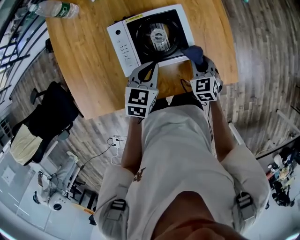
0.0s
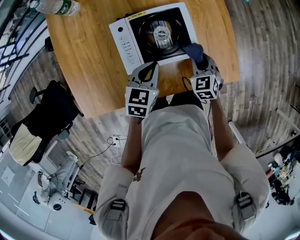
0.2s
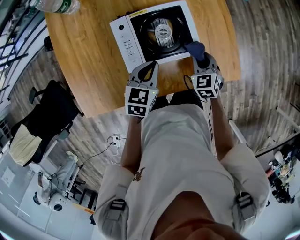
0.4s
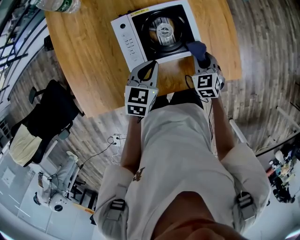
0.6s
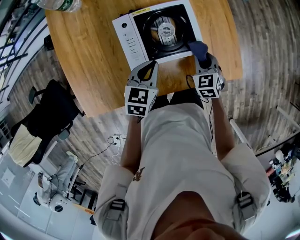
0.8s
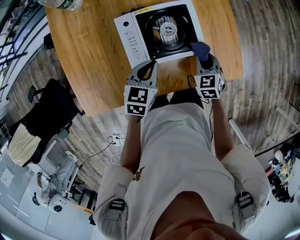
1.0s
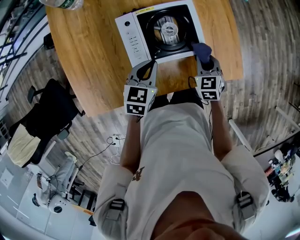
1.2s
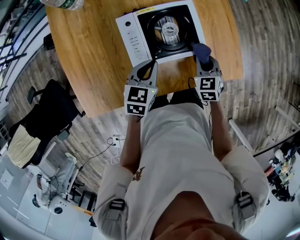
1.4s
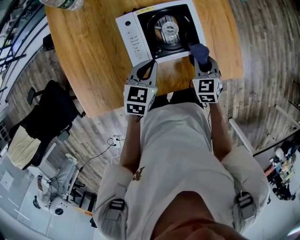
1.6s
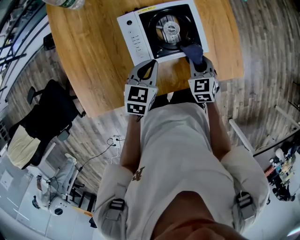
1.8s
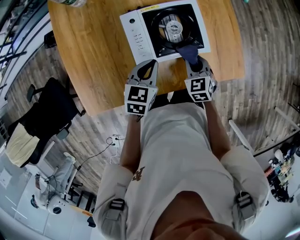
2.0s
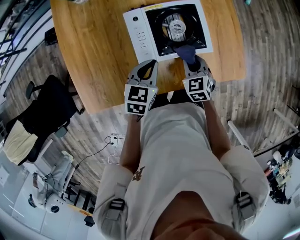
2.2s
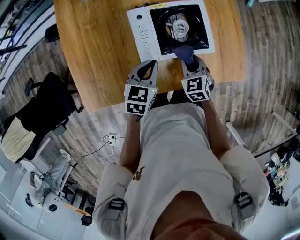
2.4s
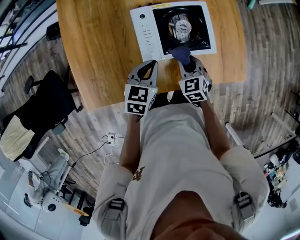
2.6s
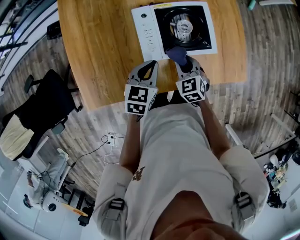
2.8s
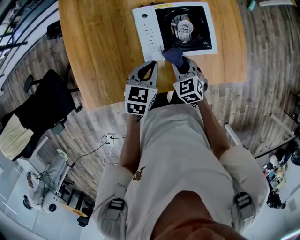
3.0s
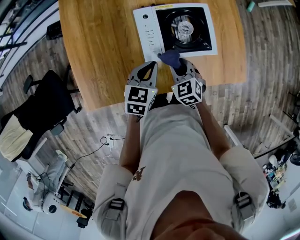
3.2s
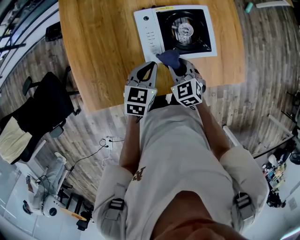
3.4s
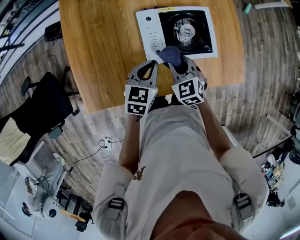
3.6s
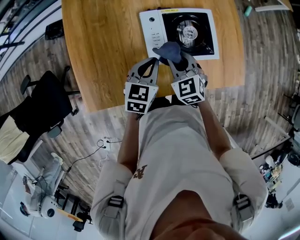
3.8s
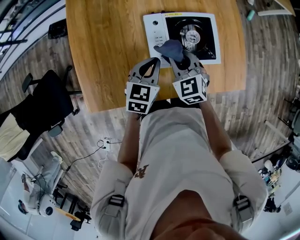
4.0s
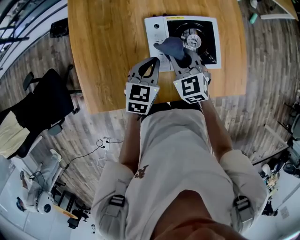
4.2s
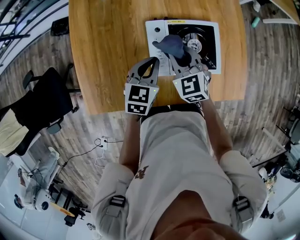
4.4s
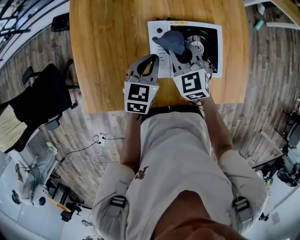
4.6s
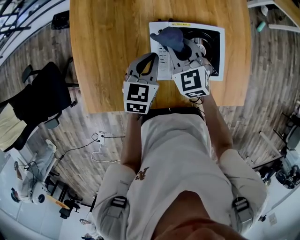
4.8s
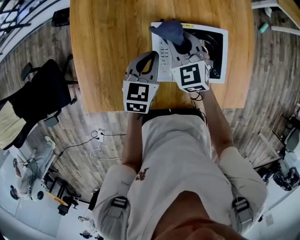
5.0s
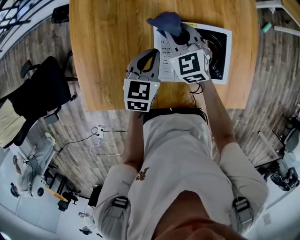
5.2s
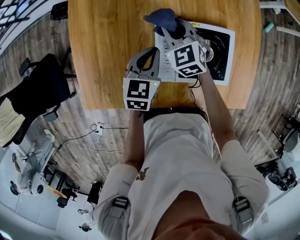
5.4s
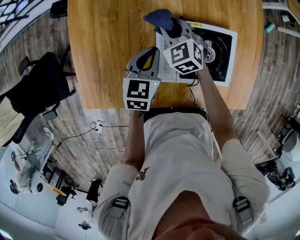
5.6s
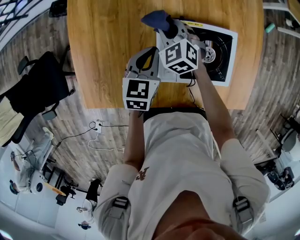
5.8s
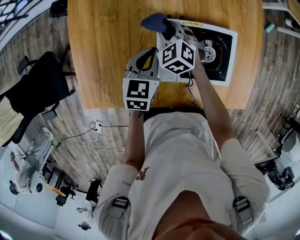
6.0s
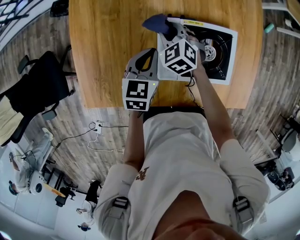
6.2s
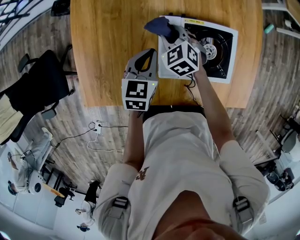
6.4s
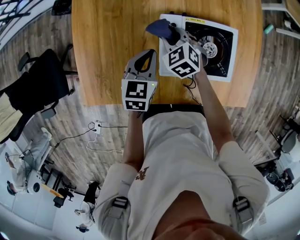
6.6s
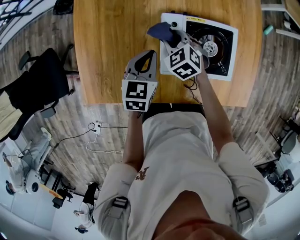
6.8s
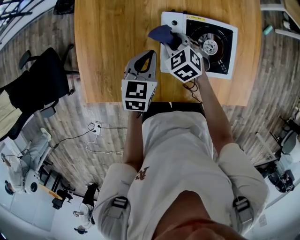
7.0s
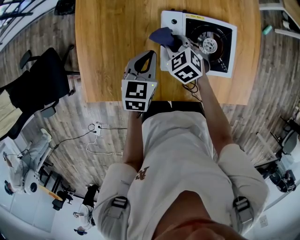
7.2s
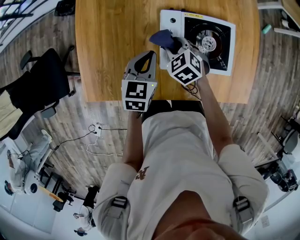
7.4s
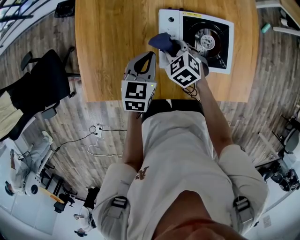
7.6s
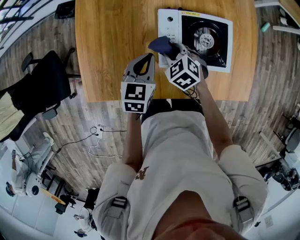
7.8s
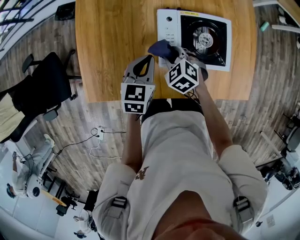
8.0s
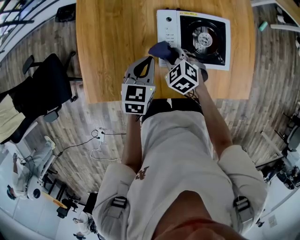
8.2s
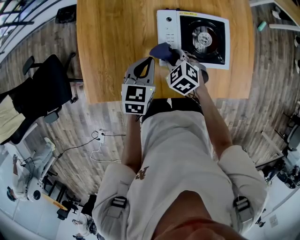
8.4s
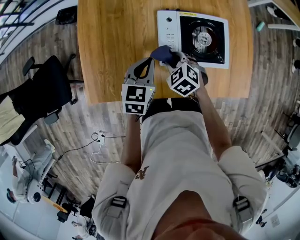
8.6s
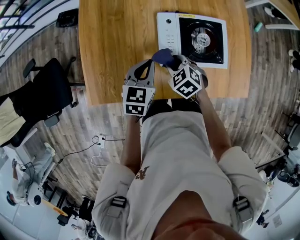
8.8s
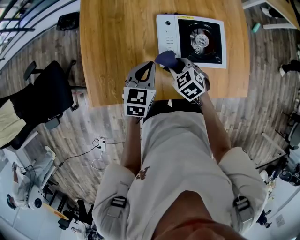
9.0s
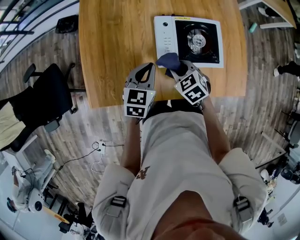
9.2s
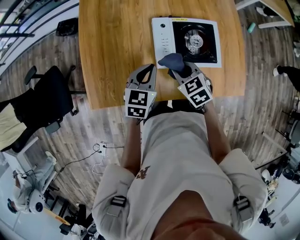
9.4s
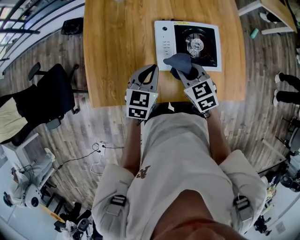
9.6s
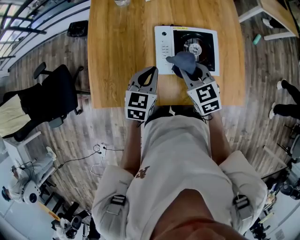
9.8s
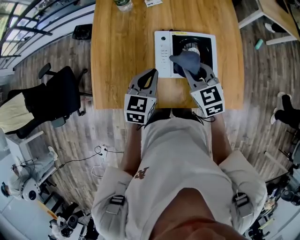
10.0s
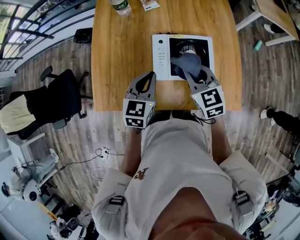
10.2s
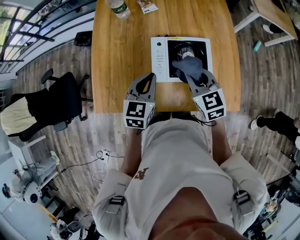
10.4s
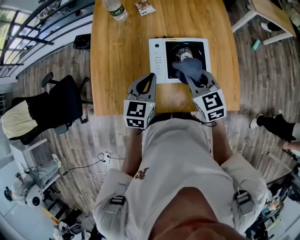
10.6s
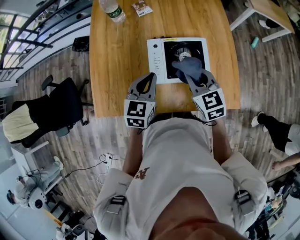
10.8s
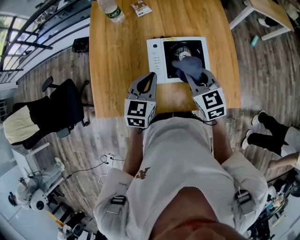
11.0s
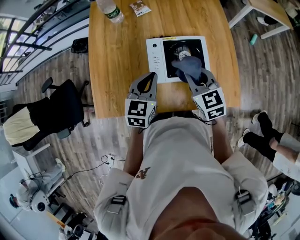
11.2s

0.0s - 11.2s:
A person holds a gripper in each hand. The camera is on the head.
0.0s - 1.6s: The left gripper is displaced to the left by some 5 cm.
1.6s - 3.2s: The right gripper travels to the left by about 15 cm, and turns by some 20 degrees. The left gripper is displaced to the left by approximately 5 cm.
3.2s - 4.8s: The left gripper is displaced forward by some 10 cm, while the right gripper heads forward and upward, covering roughly 20 cm.
4.8s - 6.4s: The left gripper shifts by roughly 5 cm, while the right gripper heads downward and to the left, covering approximately 10 cm.
6.4s - 8.0s: The right gripper heads backward, covering about 15 cm, while the left gripper goes some 5 cm backward.
8.0s - 9.6s: The left gripper ends up approximately 5 cm from where it was. The right gripper travels upward and to the right by approximately 10 cm, and swivels about 20 degrees.
9.6s - 11.2s: Both grippers travel together upward and to the right, roughly 10 cm.

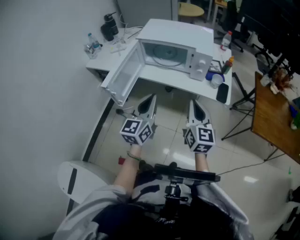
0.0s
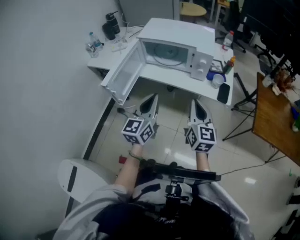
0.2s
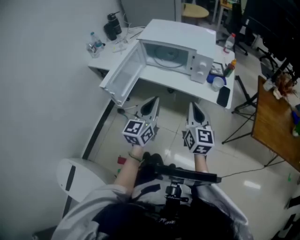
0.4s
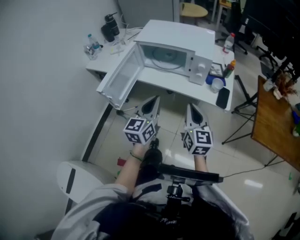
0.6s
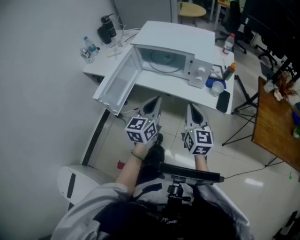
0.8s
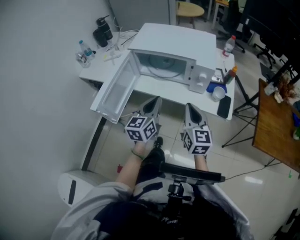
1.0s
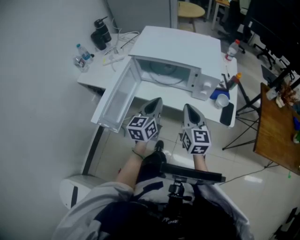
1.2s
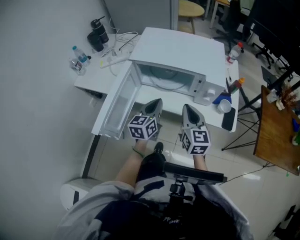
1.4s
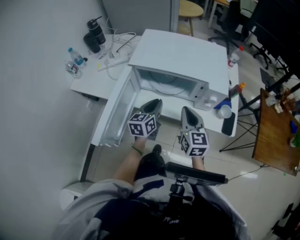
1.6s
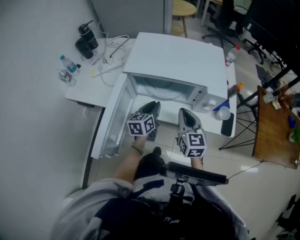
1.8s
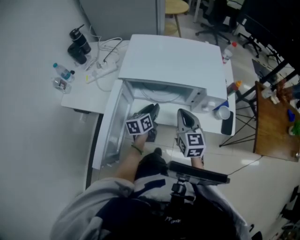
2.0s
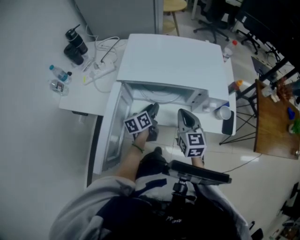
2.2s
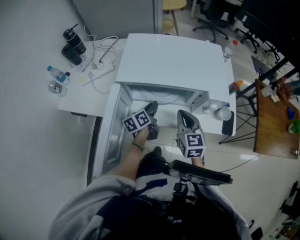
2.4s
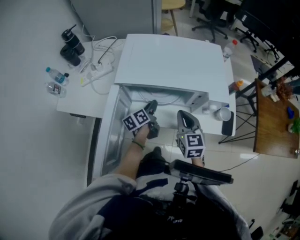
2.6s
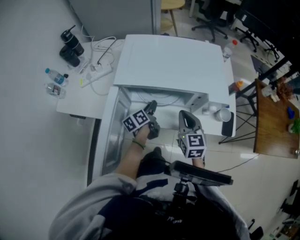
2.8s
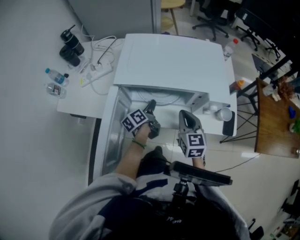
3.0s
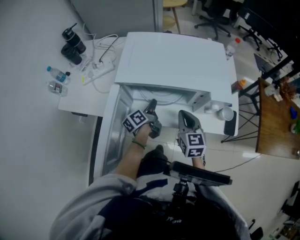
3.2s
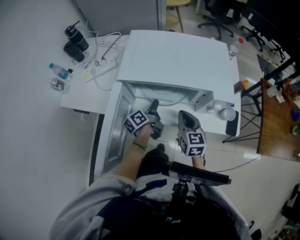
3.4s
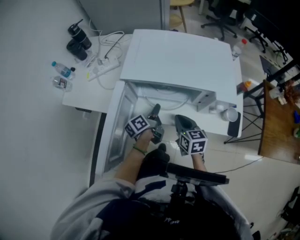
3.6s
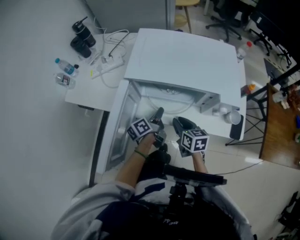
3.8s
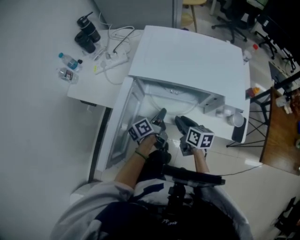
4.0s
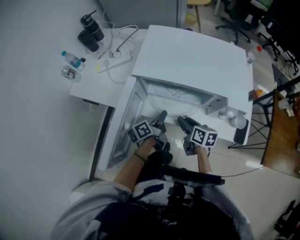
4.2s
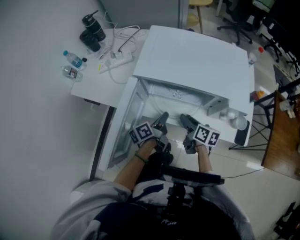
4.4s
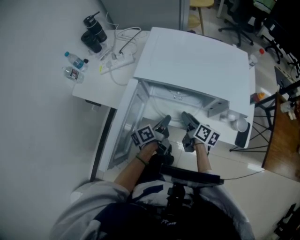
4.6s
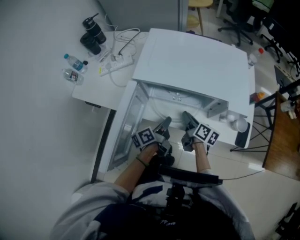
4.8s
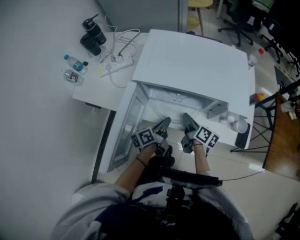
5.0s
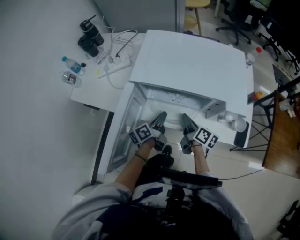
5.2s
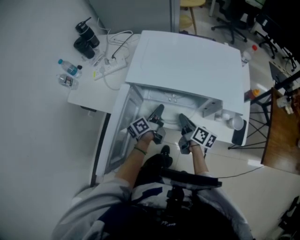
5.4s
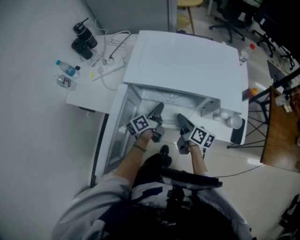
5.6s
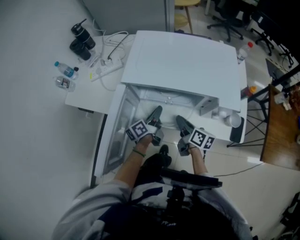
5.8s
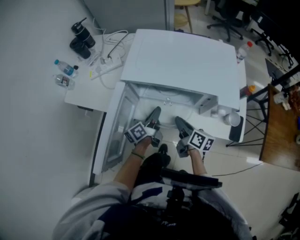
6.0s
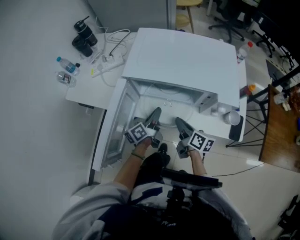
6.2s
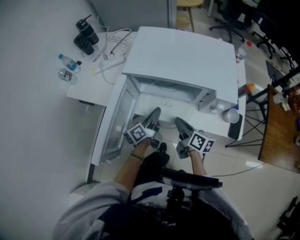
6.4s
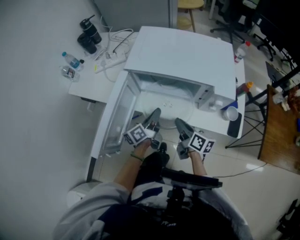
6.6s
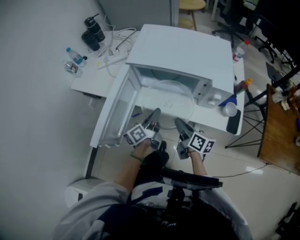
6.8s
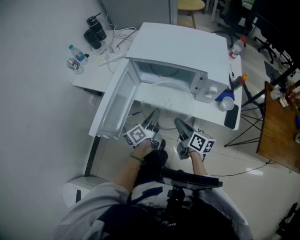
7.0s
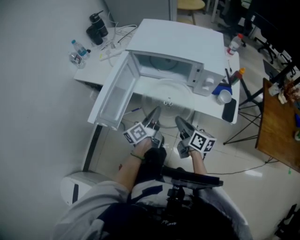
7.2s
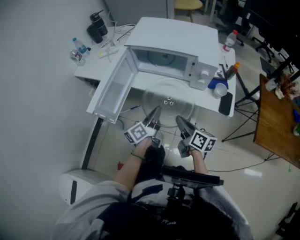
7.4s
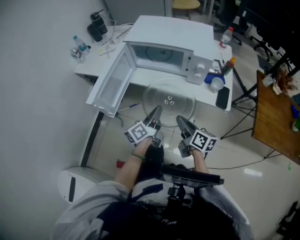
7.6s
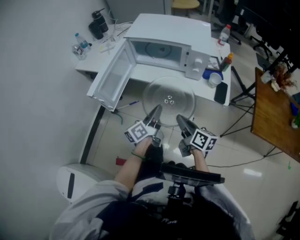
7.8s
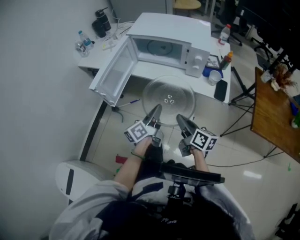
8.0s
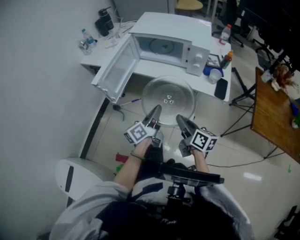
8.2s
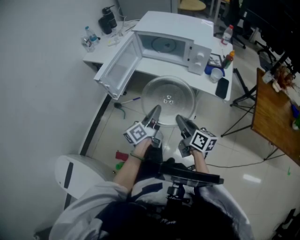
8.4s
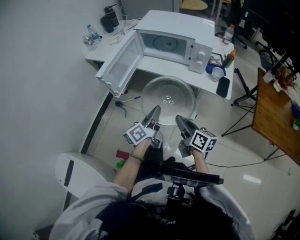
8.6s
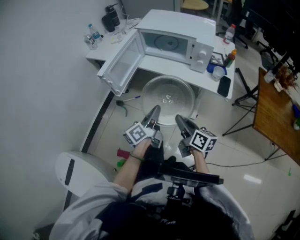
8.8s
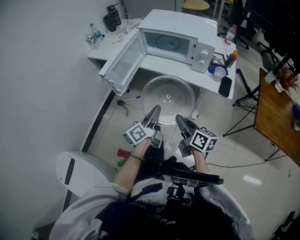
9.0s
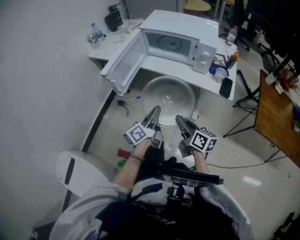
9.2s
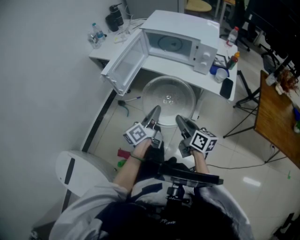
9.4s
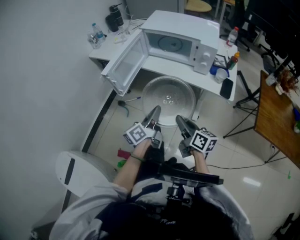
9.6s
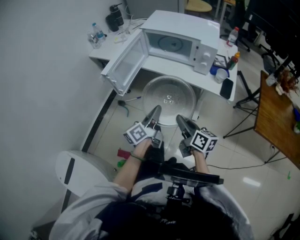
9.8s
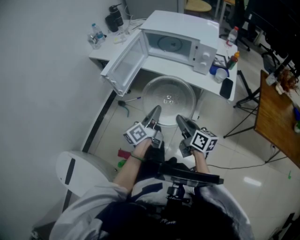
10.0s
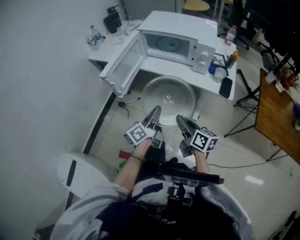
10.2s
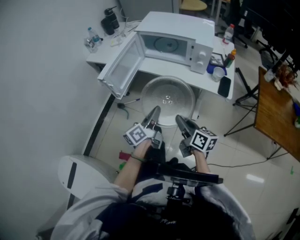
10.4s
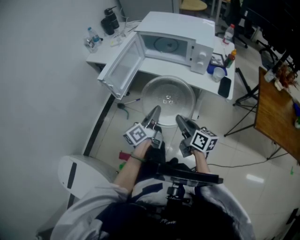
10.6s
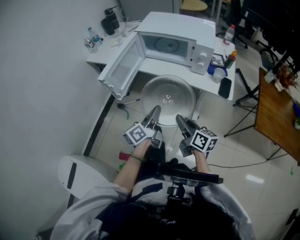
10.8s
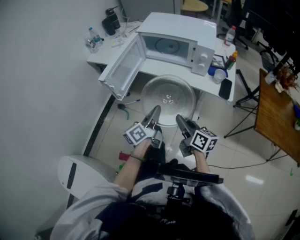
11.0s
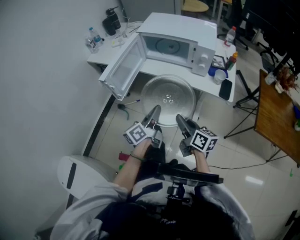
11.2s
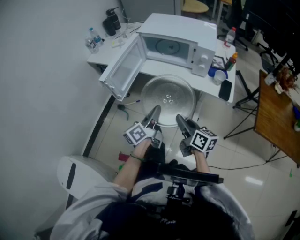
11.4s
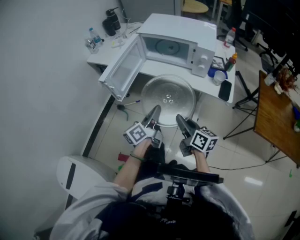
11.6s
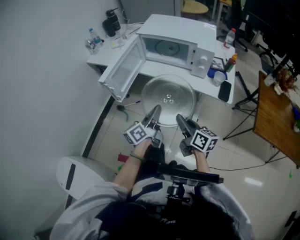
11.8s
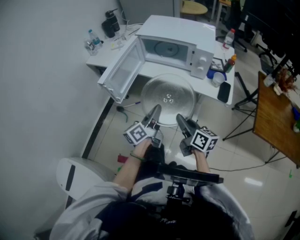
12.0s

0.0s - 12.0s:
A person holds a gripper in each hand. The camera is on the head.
0.0s - 1.6s: The left gripper is displaced forward and downward by about 30 cm, and changes its angle by some 20 degrees. The right gripper travels forward by about 25 cm.
1.6s - 3.0s: The left gripper moves forward and downward, some 15 cm, and twists about 40 degrees counterclockwise, seen from behind; the right gripper moves forward, some 5 cm.
3.0s - 4.4s: The right gripper goes about 10 cm downward, twists about 40 degrees clockwise, seen from behind, and opens. The left gripper shifts some 10 cm backward.
4.4s - 6.0s: The right gripper closes its fingers.
6.0s - 7.6s: The grippers both shift backward by about 25 cm.
7.6s - 9.0s: Both grippers move backward, some 10 cm.
9.0s - 10.4s: Both grippers stay put.
10.4s - 12.0s: The grippers make only small movements.

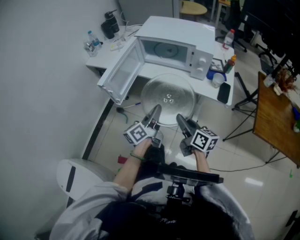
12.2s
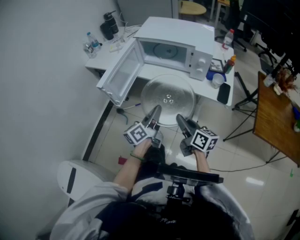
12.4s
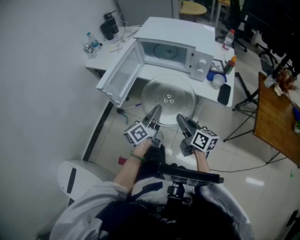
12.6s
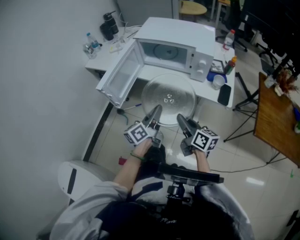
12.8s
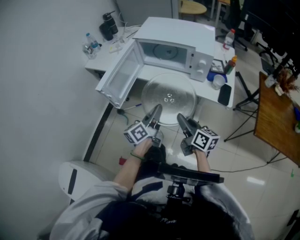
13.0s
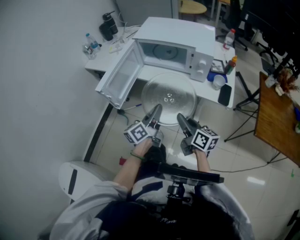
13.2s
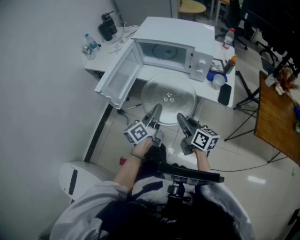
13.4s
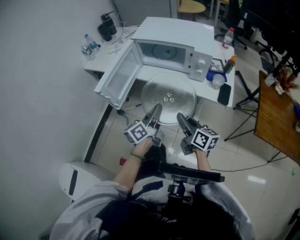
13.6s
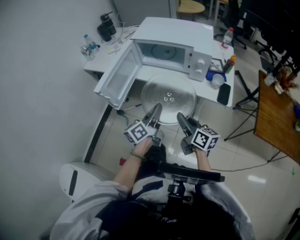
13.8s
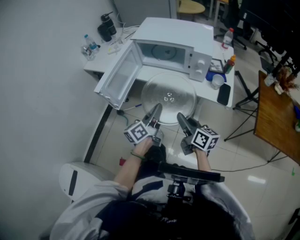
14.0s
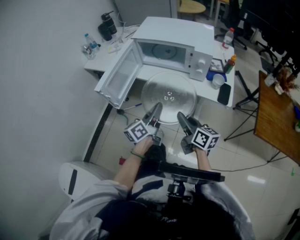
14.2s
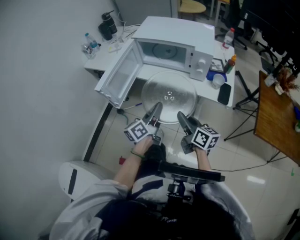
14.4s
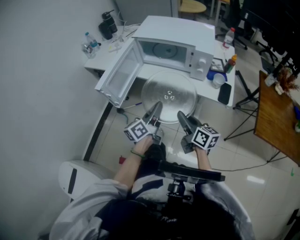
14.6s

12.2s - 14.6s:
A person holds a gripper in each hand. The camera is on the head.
12.2s - 13.4s: There are only small adjustments of the grippers.
13.4s - 14.6s: The two grippers keep their place.
